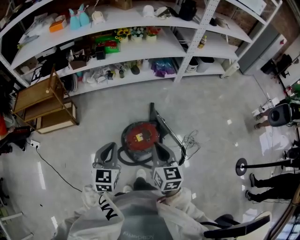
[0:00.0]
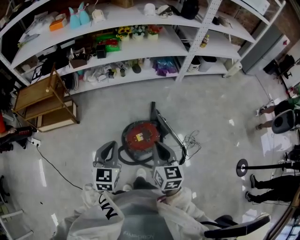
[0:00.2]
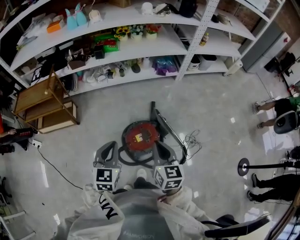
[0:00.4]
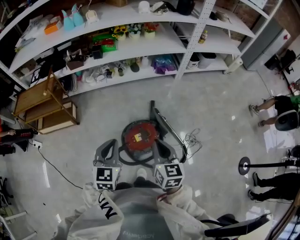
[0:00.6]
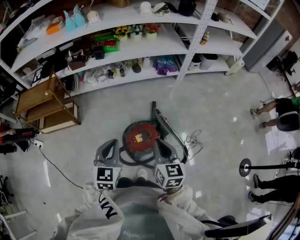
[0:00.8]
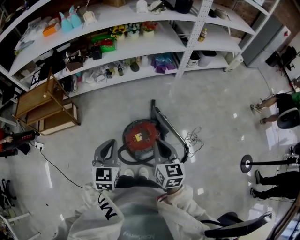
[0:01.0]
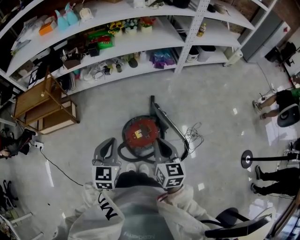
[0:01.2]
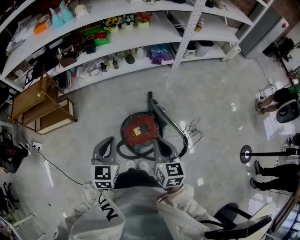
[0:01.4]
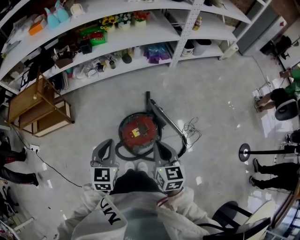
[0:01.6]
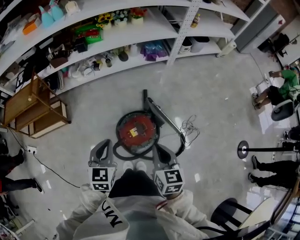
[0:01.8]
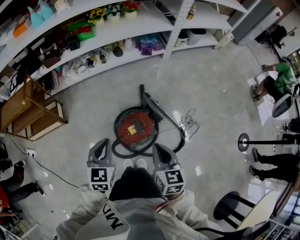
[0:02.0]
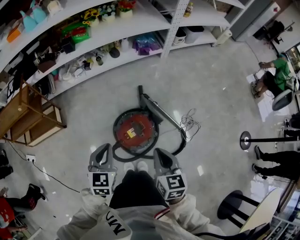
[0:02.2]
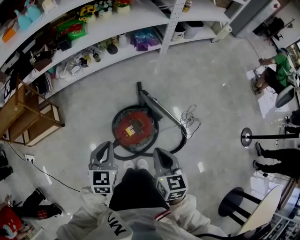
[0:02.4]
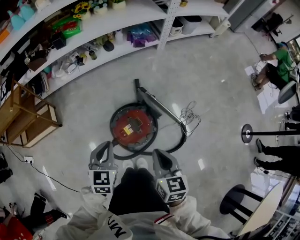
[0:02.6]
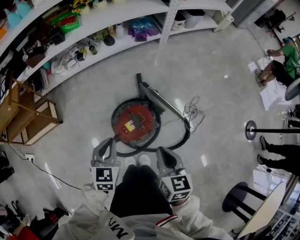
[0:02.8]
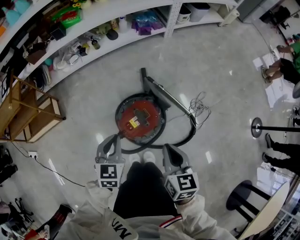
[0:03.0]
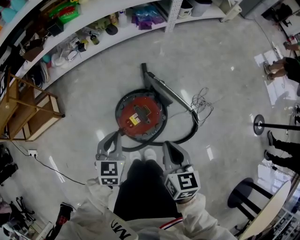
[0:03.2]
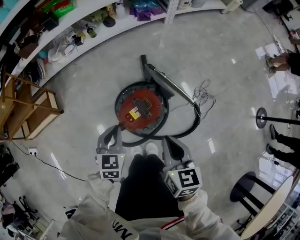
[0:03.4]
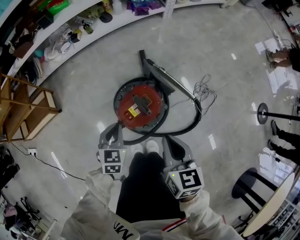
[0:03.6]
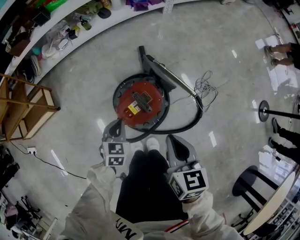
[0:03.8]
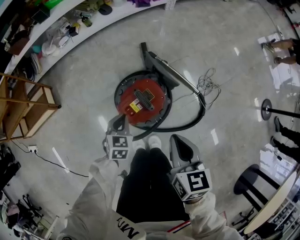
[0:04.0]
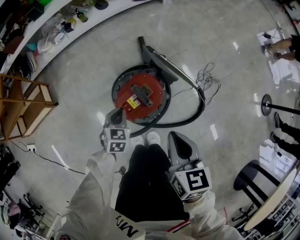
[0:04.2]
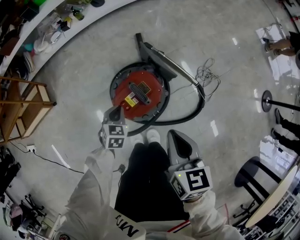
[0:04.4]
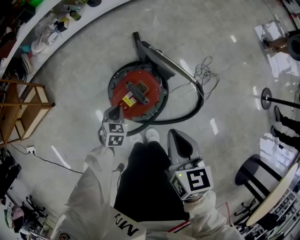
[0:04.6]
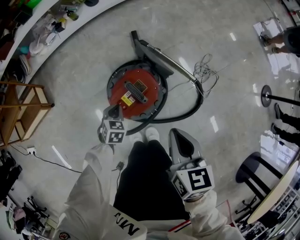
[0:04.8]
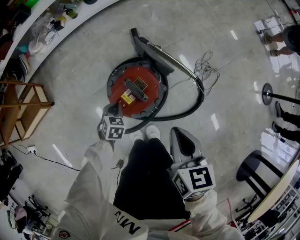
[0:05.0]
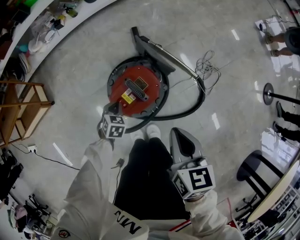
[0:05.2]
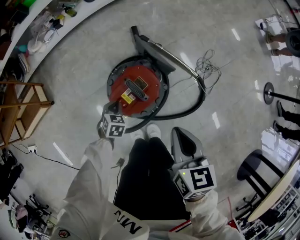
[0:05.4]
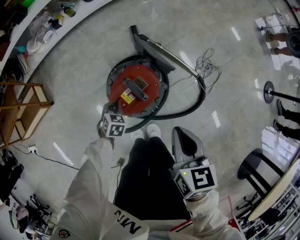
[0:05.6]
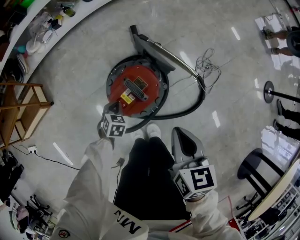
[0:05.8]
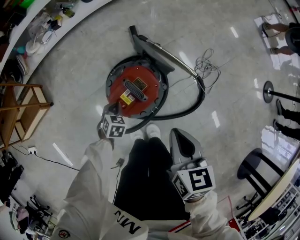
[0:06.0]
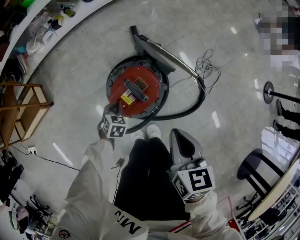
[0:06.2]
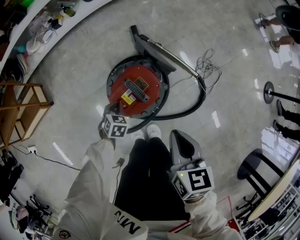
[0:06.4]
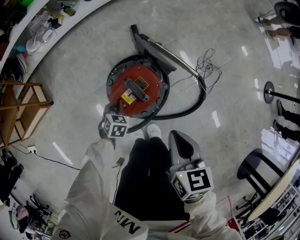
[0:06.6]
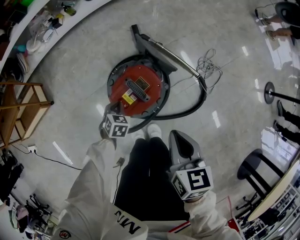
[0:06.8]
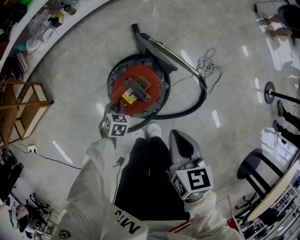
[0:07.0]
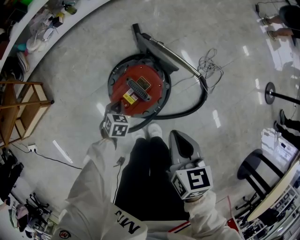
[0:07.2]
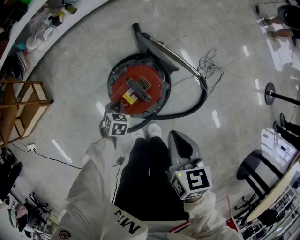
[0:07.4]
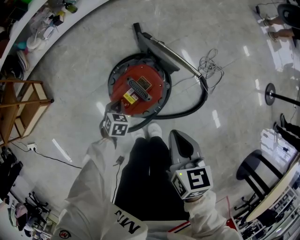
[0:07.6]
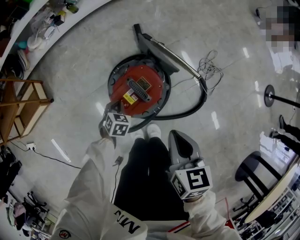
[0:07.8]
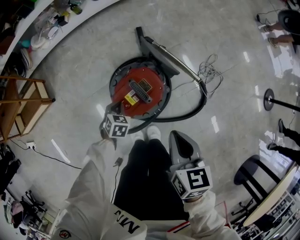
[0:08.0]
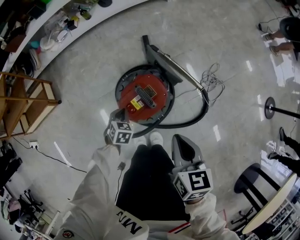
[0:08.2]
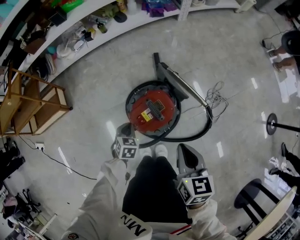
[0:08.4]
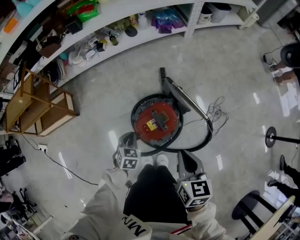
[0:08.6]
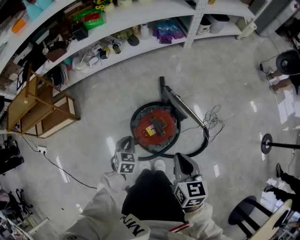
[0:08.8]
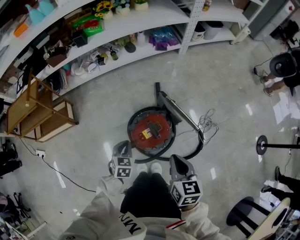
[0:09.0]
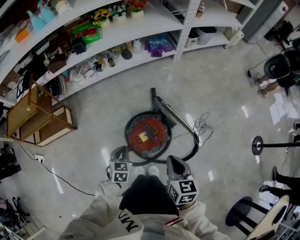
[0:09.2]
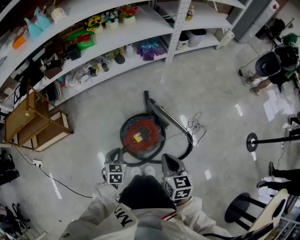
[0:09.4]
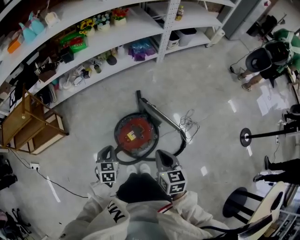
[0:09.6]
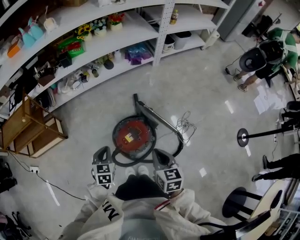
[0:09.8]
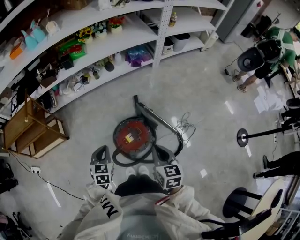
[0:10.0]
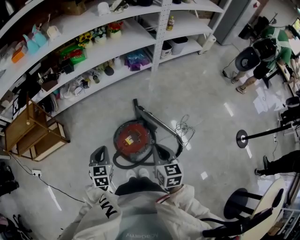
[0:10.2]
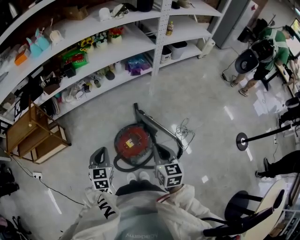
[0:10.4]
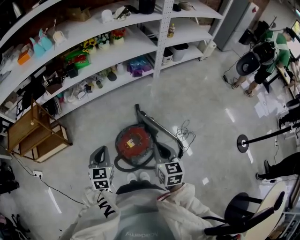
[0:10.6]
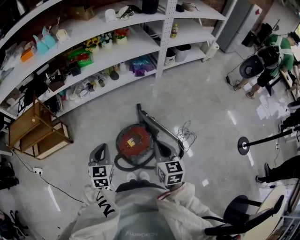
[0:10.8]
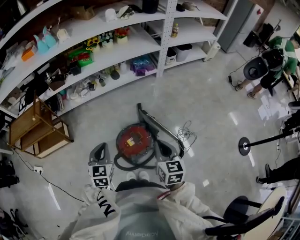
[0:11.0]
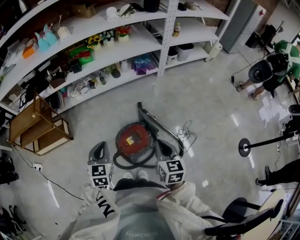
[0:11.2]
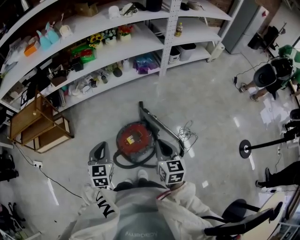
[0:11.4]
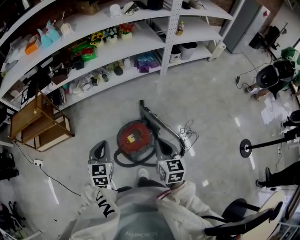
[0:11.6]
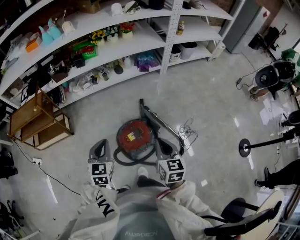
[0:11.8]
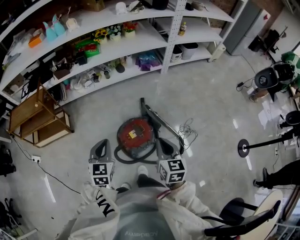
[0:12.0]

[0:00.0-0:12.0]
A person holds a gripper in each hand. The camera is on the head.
0.0 to 1.6 s: The right gripper ends up roughly 5 cm from where it was; the left gripper shifts by about 5 cm.
1.6 to 3.0 s: The grippers both shift downward by about 15 cm.
3.0 to 4.4 s: The right gripper moves downward, approximately 5 cm. Meanwhile the left gripper heads downward, covering approximately 25 cm.
4.4 to 6.0 s: The left gripper heads downward, covering approximately 10 cm.
6.0 to 7.6 s: The grippers stay close to where they were, moving slightly.
7.6 to 9.0 s: The left gripper is displaced upward by about 20 cm, and changes its angle by about 20 degrees. Meanwhile the right gripper shifts some 10 cm upward.
9.0 to 10.4 s: The right gripper heads upward, covering some 10 cm. Meanwhile the left gripper goes some 20 cm upward.
10.4 to 12.0 s: The left gripper moves approximately 5 cm.

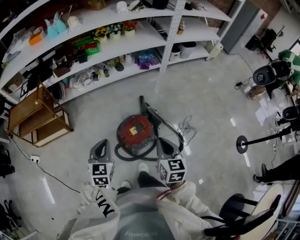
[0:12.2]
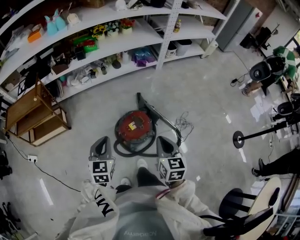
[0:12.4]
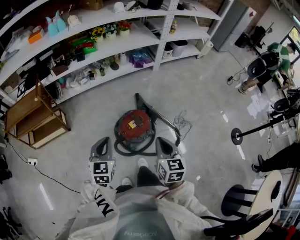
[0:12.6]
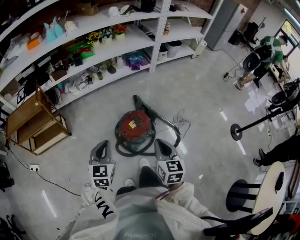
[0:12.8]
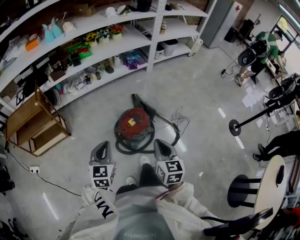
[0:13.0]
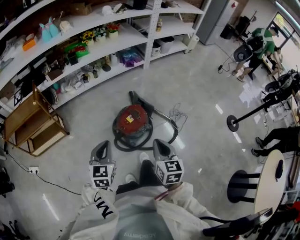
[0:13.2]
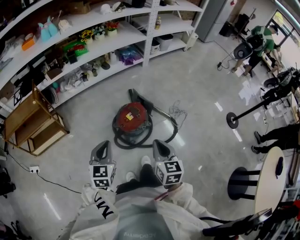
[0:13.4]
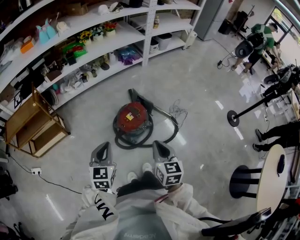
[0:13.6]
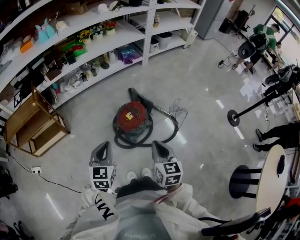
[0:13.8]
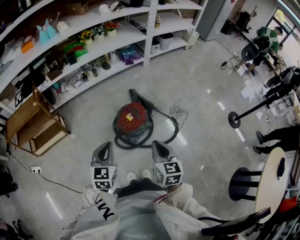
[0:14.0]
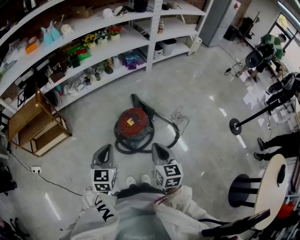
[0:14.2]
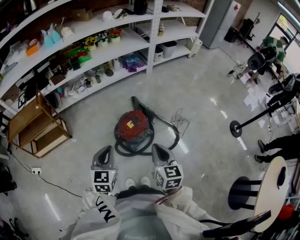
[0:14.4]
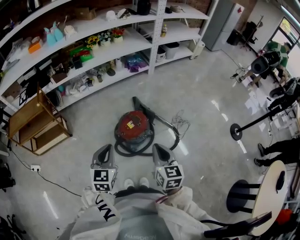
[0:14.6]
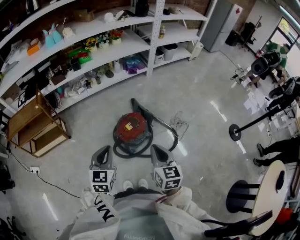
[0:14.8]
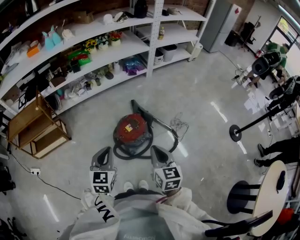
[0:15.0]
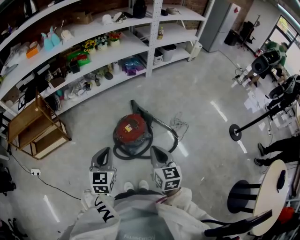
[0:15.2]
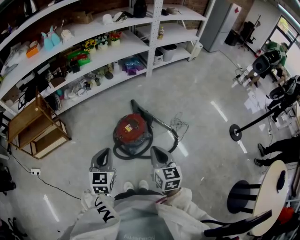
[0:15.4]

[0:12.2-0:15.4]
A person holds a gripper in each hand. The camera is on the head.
12.2 to 13.8 s: Both grippers move backward, about 15 cm.
13.8 to 15.4 s: The grippers make only small movements.

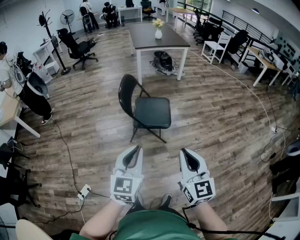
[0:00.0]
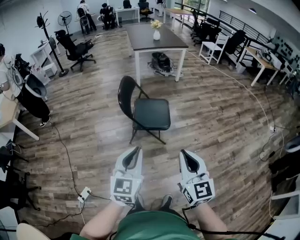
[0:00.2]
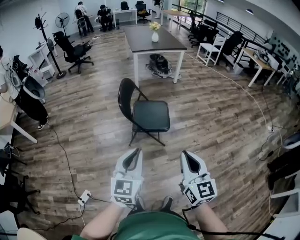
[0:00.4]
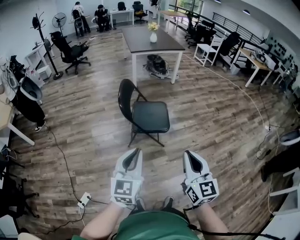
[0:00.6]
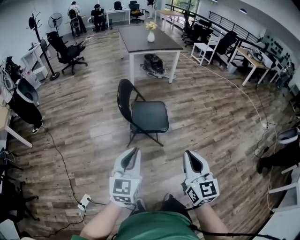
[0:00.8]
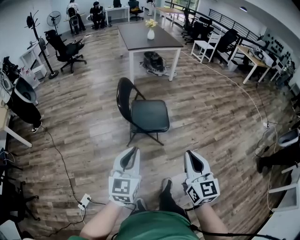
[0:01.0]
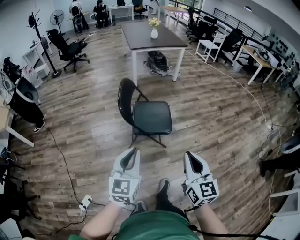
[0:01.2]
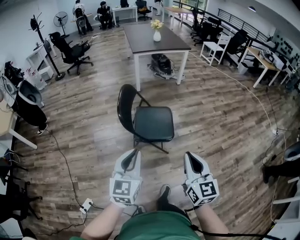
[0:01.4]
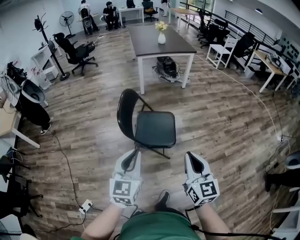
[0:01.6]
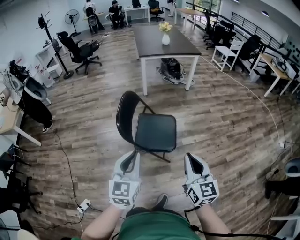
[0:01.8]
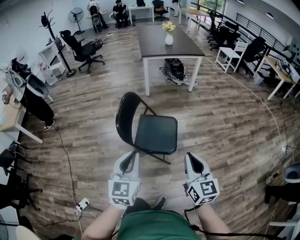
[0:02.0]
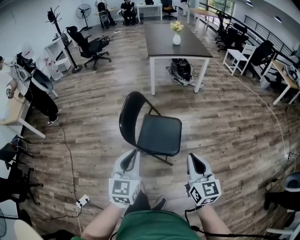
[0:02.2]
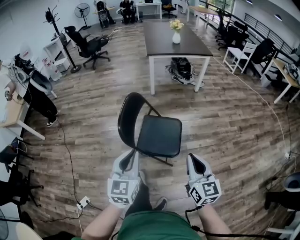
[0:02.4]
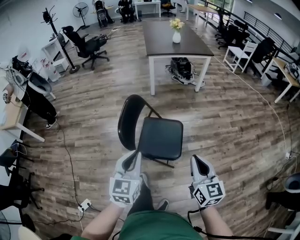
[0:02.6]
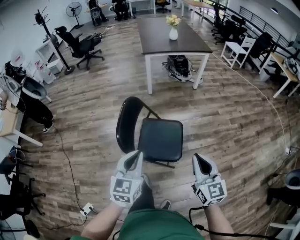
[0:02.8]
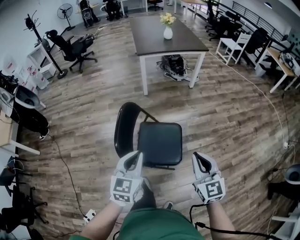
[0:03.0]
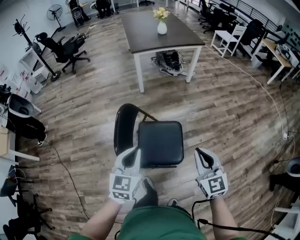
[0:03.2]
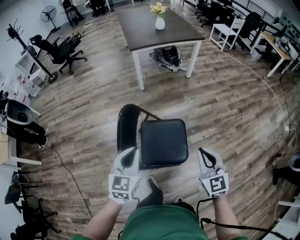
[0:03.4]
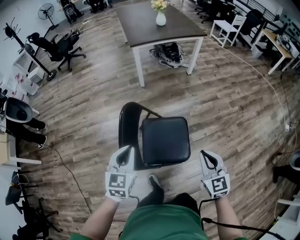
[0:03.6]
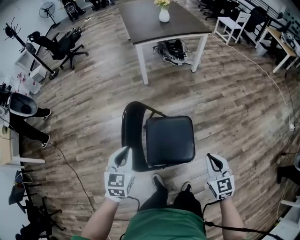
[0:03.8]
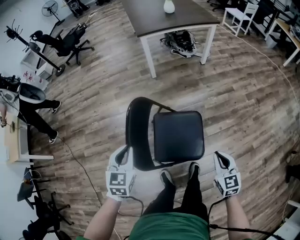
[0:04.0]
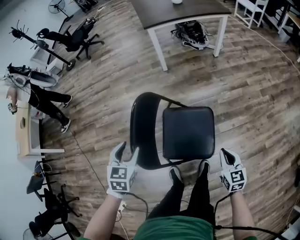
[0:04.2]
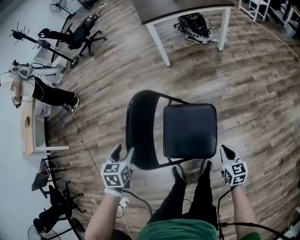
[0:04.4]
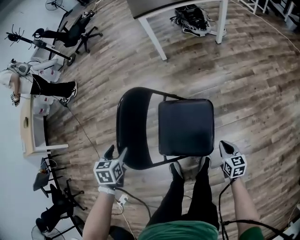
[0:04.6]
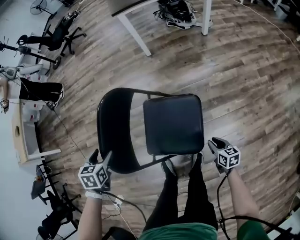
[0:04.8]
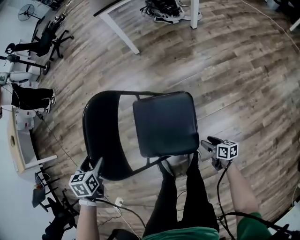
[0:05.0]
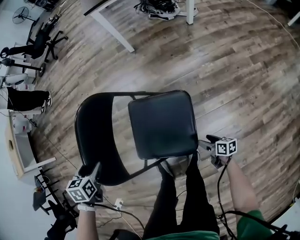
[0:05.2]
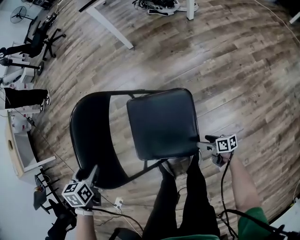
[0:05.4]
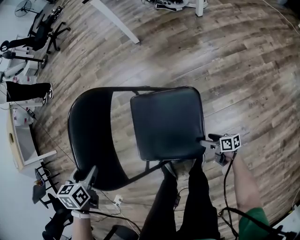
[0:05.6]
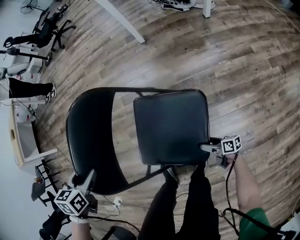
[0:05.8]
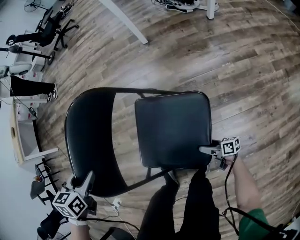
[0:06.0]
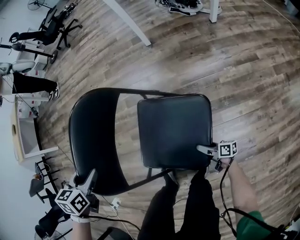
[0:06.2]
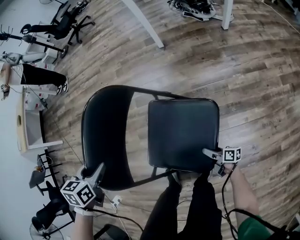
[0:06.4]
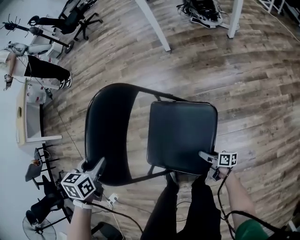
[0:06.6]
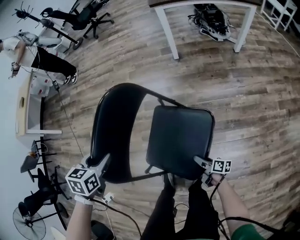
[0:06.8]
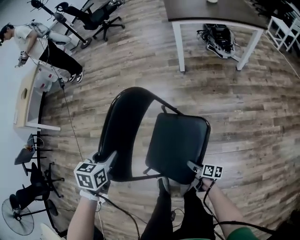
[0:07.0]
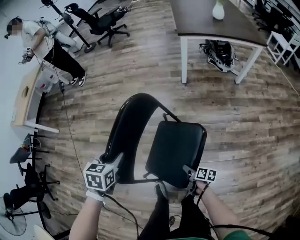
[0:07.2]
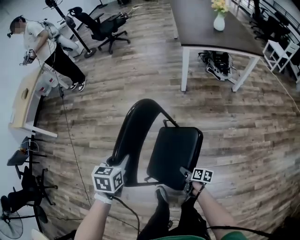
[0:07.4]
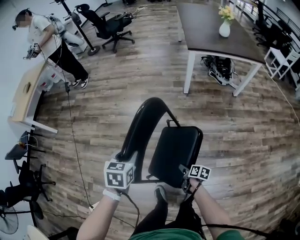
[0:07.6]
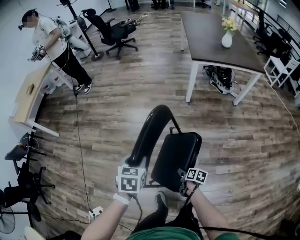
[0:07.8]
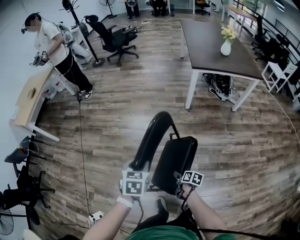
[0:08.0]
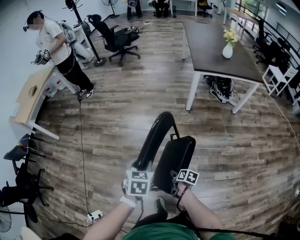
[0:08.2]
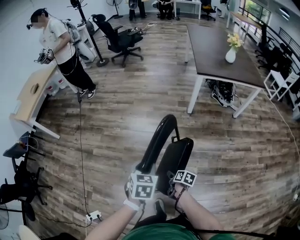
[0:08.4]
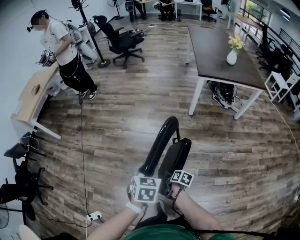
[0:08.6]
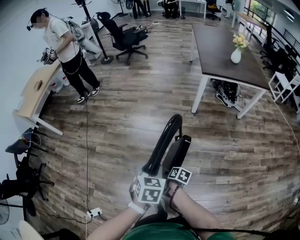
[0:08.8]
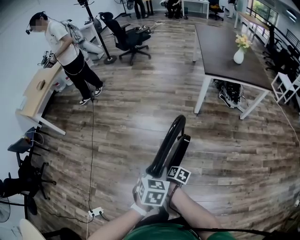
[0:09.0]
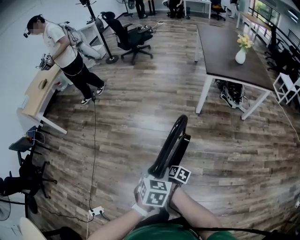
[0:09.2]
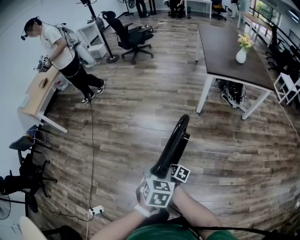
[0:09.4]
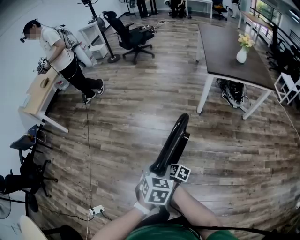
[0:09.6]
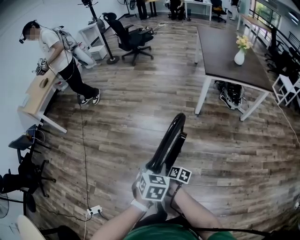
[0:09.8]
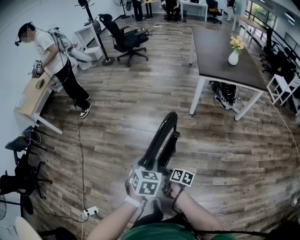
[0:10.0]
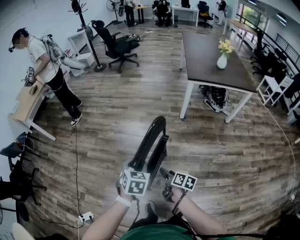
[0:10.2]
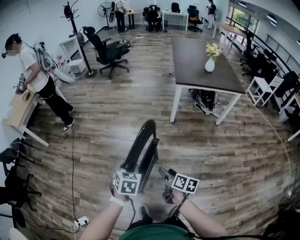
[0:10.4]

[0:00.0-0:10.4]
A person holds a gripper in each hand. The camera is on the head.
0.0 to 1.4 s: Both grippers move forward, some 15 cm.
1.4 to 3.0 s: The grippers both shift forward by about 30 cm.
3.0 to 4.4 s: The left gripper shifts about 30 cm downward, to the left and forward, tilts its fingers some 30 degrees downward, and opens up. Meanwhile the right gripper shifts roughly 35 cm downward, and rotates approximately 30 degrees.
4.4 to 6.0 s: The right gripper goes about 35 cm downward, swivels about 60 degrees, and opens its fingers. The left gripper travels downward by approximately 10 cm.
6.0 to 7.4 s: The right gripper travels upward, to the left and forward by some 35 cm, changes its angle by roughly 30 degrees, and closes up. The left gripper goes some 15 cm upward and to the left.
7.4 to 9.0 s: The right gripper goes some 25 cm to the left, forward and upward. Meanwhile the left gripper is displaced upward by roughly 5 cm.
9.0 to 10.4 s: The right gripper travels upward and to the right by about 20 cm, and turns by approximately 20 degrees.
